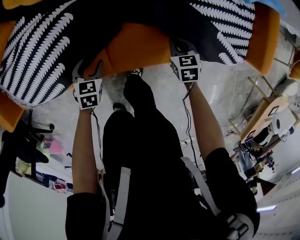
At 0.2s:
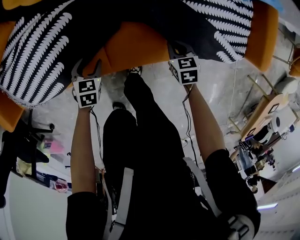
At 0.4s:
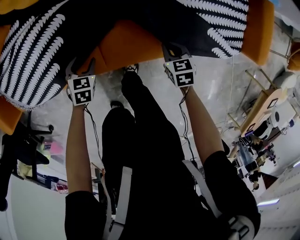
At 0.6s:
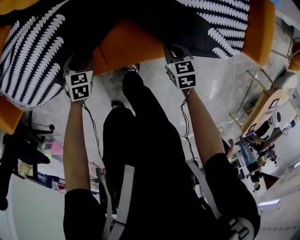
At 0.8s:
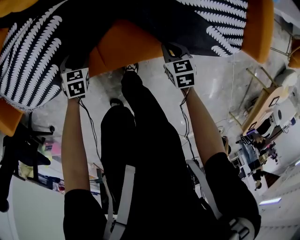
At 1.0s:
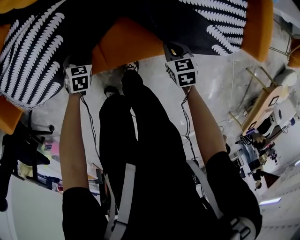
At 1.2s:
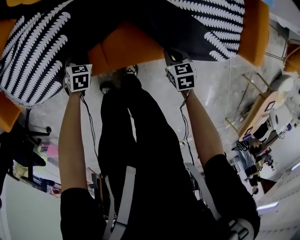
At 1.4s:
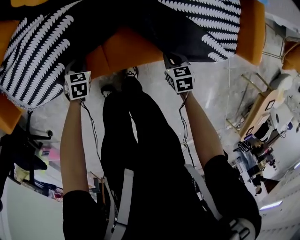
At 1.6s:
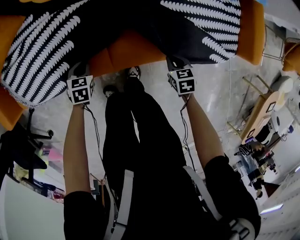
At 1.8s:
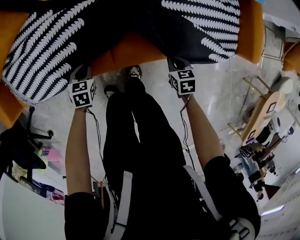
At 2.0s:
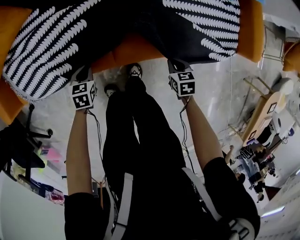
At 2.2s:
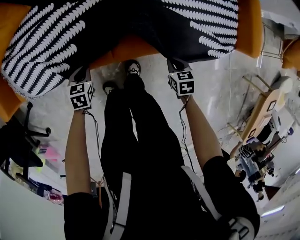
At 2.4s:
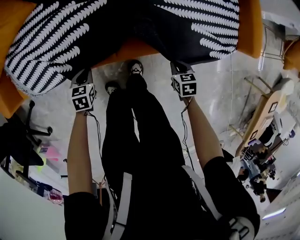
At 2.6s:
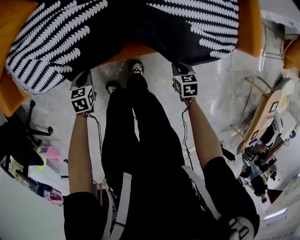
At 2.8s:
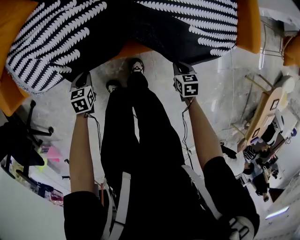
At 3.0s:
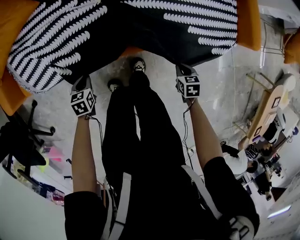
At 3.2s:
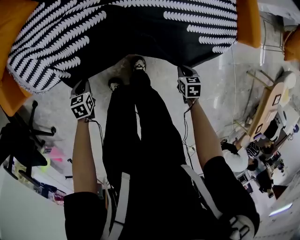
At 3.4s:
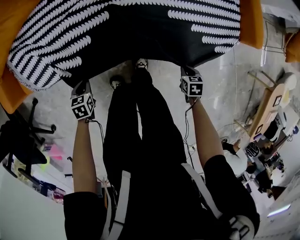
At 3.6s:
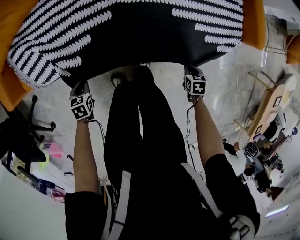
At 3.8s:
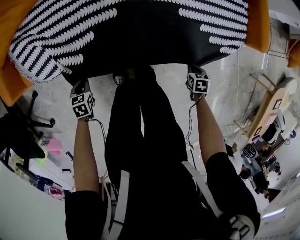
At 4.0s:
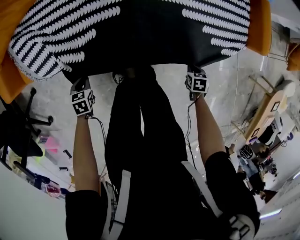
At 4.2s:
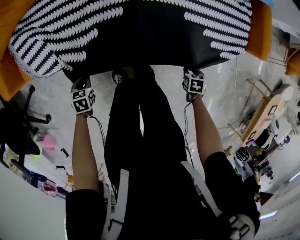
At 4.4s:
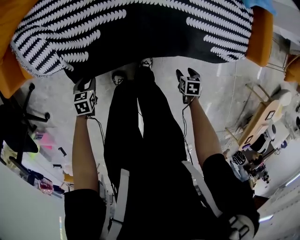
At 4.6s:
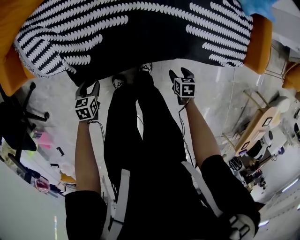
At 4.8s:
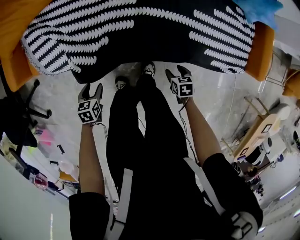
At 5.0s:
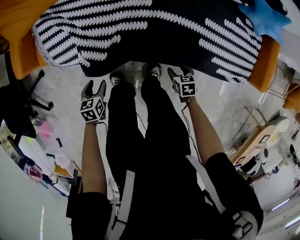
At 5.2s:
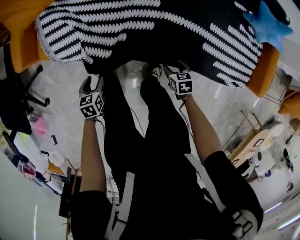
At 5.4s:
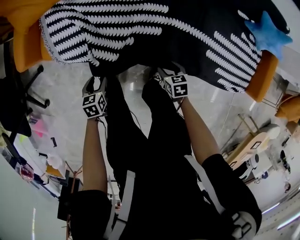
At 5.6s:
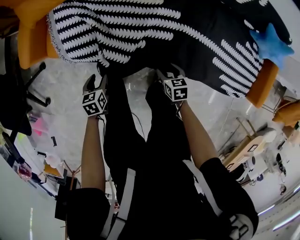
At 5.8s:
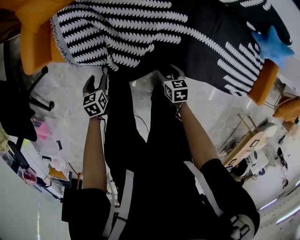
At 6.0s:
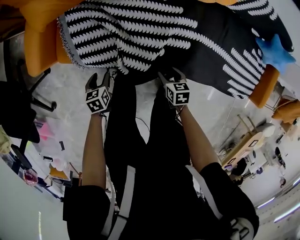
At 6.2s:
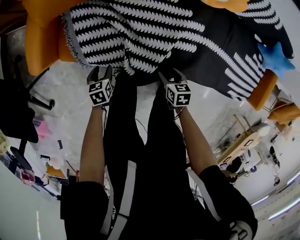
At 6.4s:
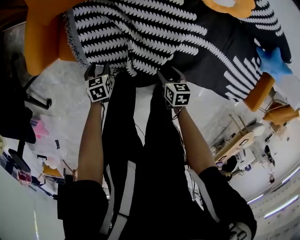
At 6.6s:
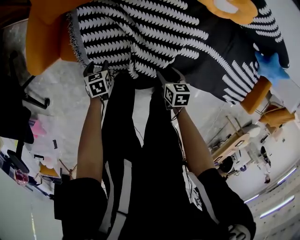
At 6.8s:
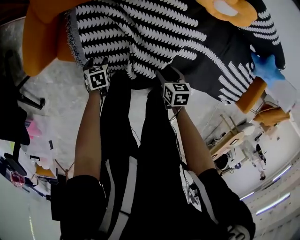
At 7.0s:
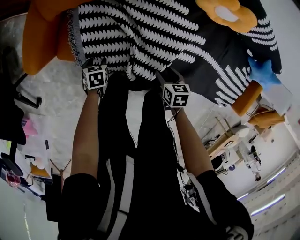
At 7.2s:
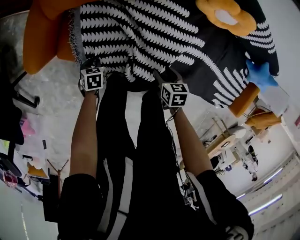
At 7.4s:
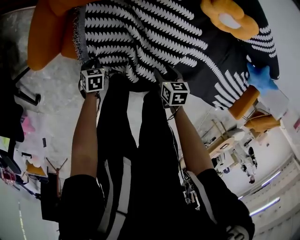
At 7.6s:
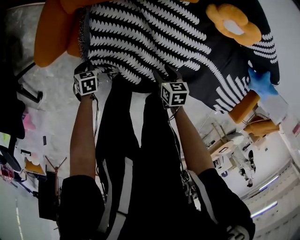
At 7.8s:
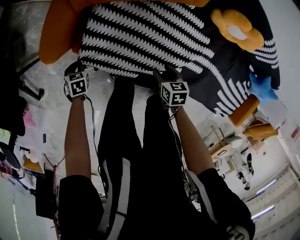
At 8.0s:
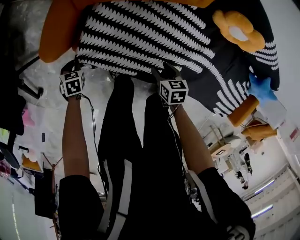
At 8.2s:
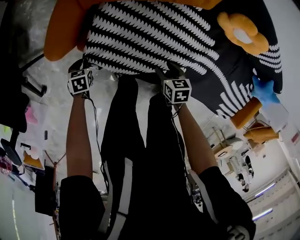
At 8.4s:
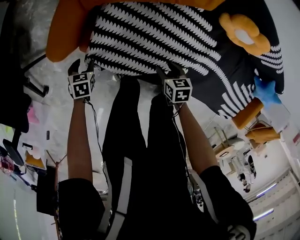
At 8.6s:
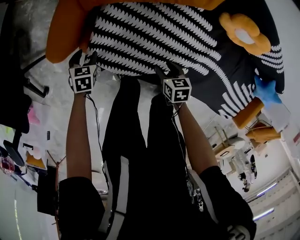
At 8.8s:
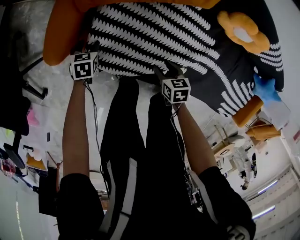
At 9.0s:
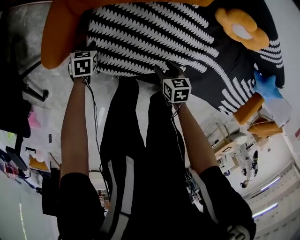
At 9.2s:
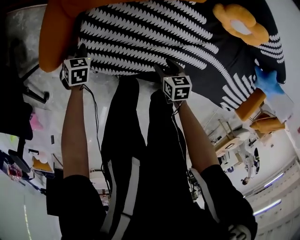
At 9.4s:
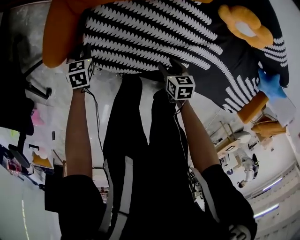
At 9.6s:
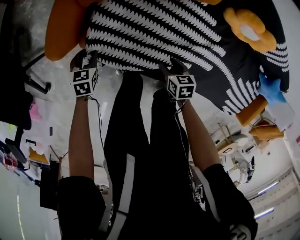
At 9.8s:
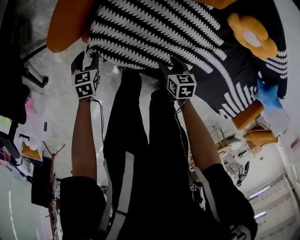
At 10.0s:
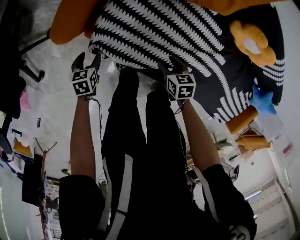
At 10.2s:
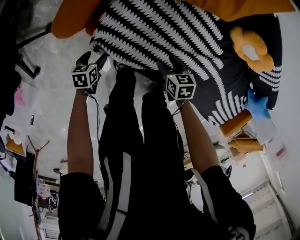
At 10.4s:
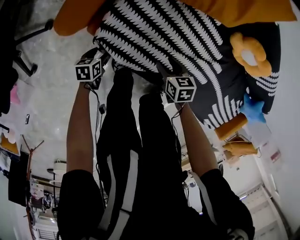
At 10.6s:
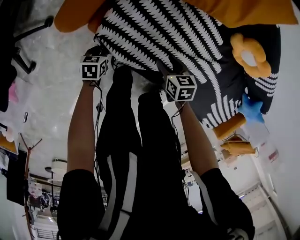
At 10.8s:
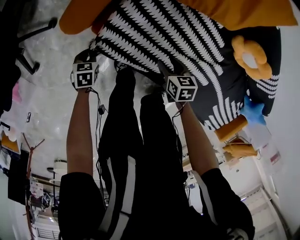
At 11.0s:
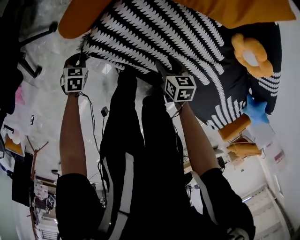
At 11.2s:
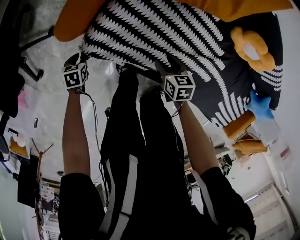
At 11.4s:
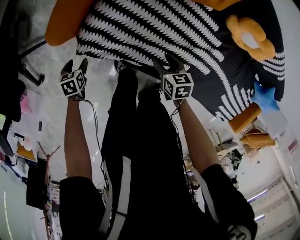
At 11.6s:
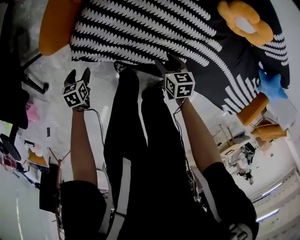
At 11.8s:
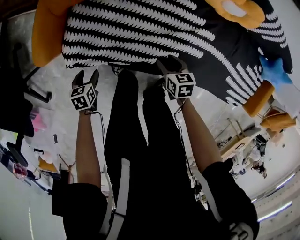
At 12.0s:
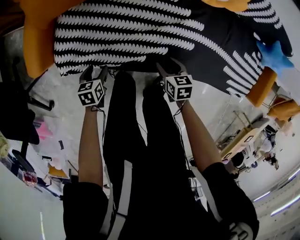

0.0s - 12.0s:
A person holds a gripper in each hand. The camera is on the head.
0.0s - 1.6s: The left gripper is displaced to the left by roughly 5 cm, and closes, while the right gripper goes some 10 cm backward.
1.6s - 3.0s: The right gripper goes forward and backward, approximately 15 cm each way, reversing 2 times. Meanwhile the left gripper moves forward and backward over about 10 cm, changing direction 2 times.
3.0s - 4.4s: The left gripper changes place by roughly 10 cm. The right gripper shifts by roughly 5 cm, and opens up.
4.4s - 6.0s: The left gripper shifts by some 25 cm, and turns by roughly 30 degrees. Meanwhile the right gripper changes place by approximately 50 cm, and rotates approximately 30 degrees.
6.0s - 7.6s: The left gripper is displaced to the left, downward and forward by roughly 20 cm, and closes up. The right gripper travels forward and to the left by roughly 15 cm.
7.6s - 9.0s: The right gripper ends up approximately 5 cm from where it was; the left gripper is displaced forward by about 10 cm, and opens and closes again.
9.0s - 10.4s: The left gripper heads backward, covering approximately 15 cm, turns by about 30 degrees, and opens up.
10.4s - 12.0s: The left gripper changes place by roughly 20 cm, rotates approximately 20 degrees, and closes, then reopens. Meanwhile the right gripper shifts by approximately 20 cm, and turns by roughly 20 degrees.

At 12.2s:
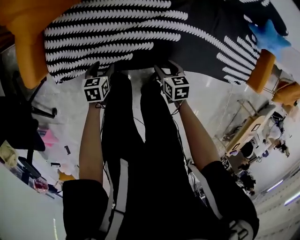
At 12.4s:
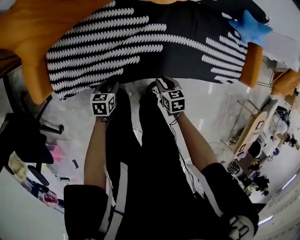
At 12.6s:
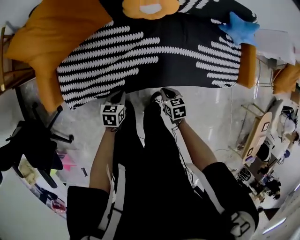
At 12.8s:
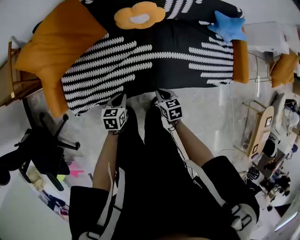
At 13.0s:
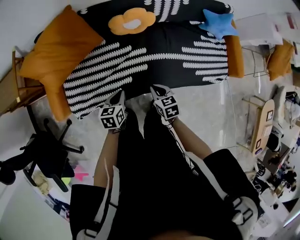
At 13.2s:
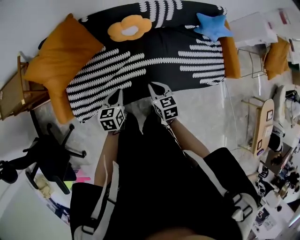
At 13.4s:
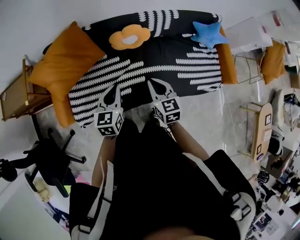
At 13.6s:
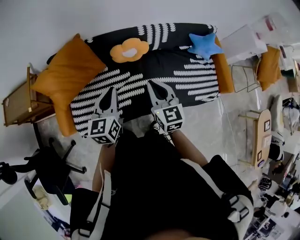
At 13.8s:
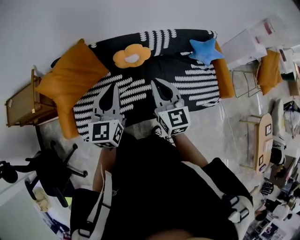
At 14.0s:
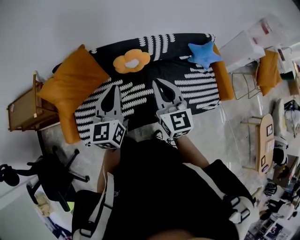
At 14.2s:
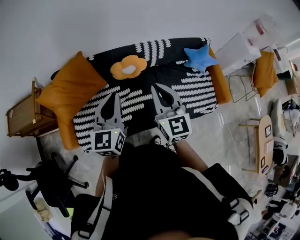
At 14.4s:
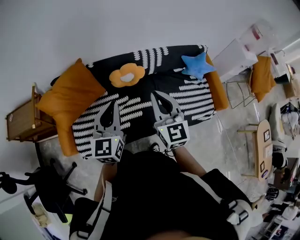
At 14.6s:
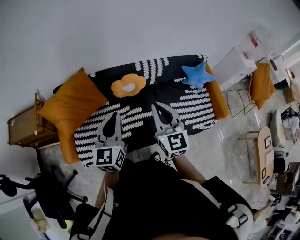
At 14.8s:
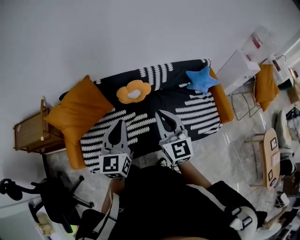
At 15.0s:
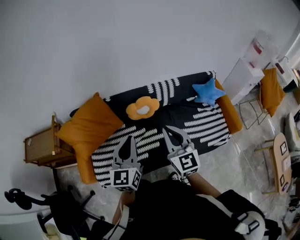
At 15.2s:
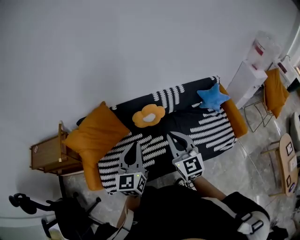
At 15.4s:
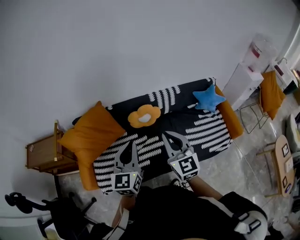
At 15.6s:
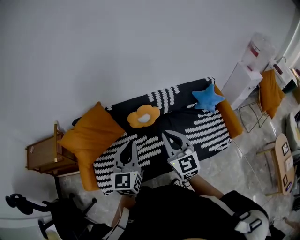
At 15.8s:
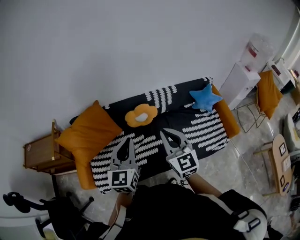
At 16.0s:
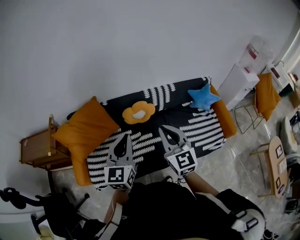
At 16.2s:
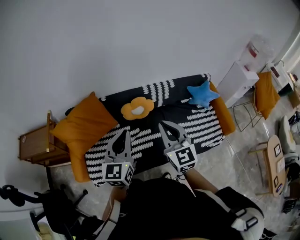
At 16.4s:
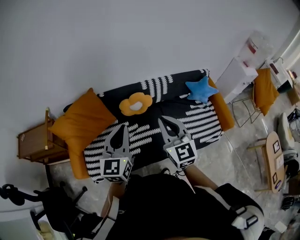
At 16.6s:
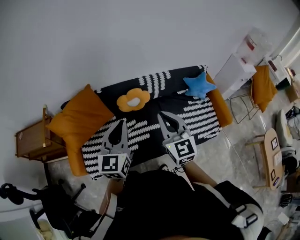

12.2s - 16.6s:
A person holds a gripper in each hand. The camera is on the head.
12.2s - 13.6s: Both grippers move upward, approximately 50 cm. The left gripper tips its fingers upward by some 40 degrees, and closes its fingers. Meanwhile the right gripper tilts its fingers about 40 degrees upward, and closes its fingers.
13.6s - 15.2s: Both grippers move upward, about 10 cm.
15.2s - 16.6s: The grippers make only small movements.

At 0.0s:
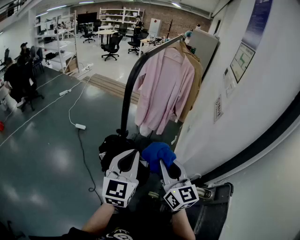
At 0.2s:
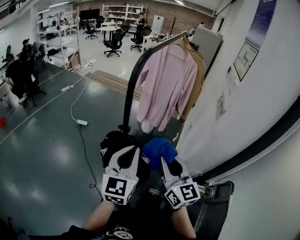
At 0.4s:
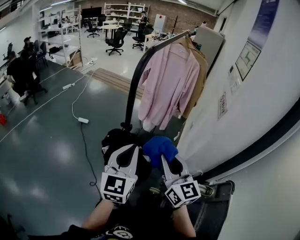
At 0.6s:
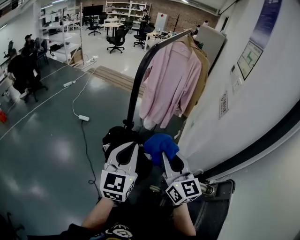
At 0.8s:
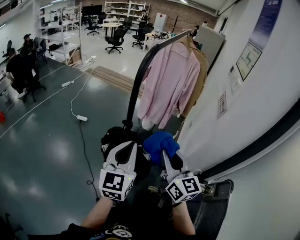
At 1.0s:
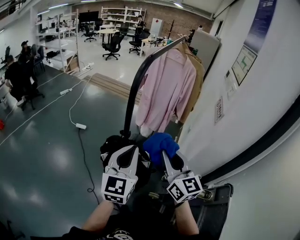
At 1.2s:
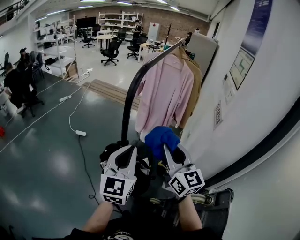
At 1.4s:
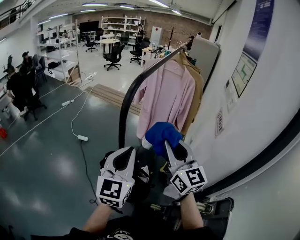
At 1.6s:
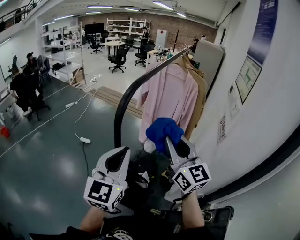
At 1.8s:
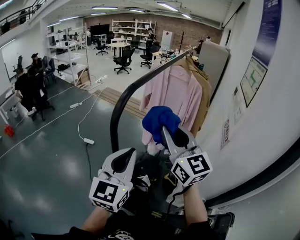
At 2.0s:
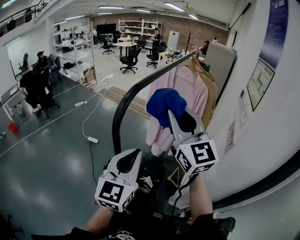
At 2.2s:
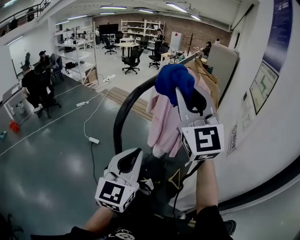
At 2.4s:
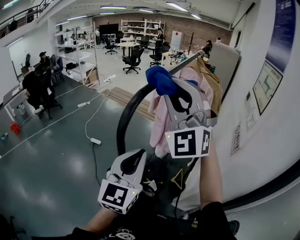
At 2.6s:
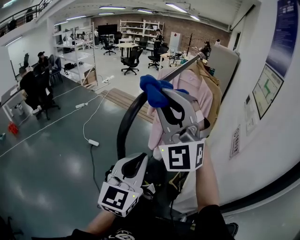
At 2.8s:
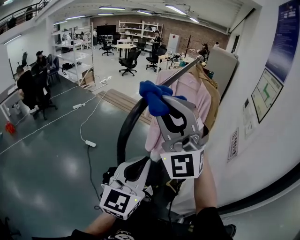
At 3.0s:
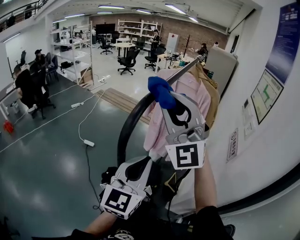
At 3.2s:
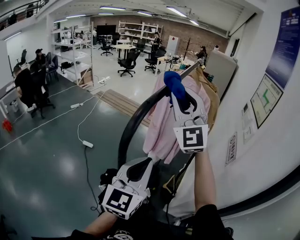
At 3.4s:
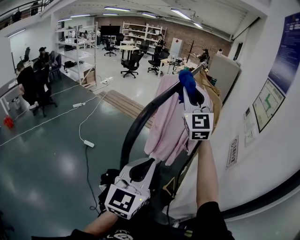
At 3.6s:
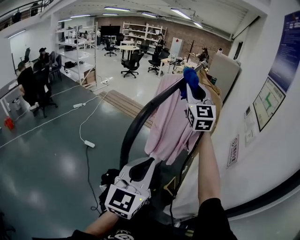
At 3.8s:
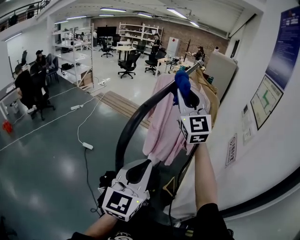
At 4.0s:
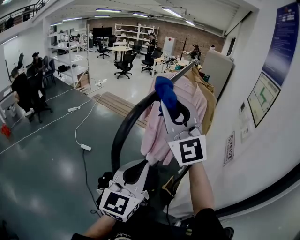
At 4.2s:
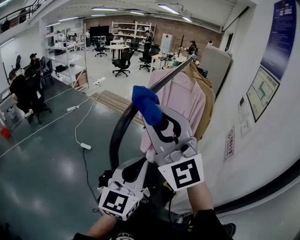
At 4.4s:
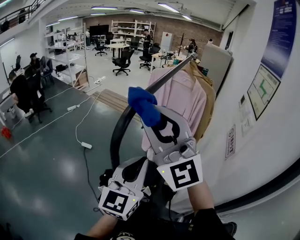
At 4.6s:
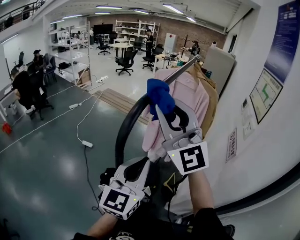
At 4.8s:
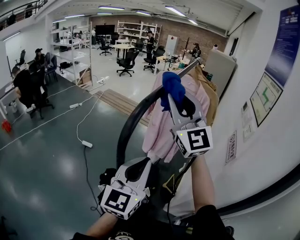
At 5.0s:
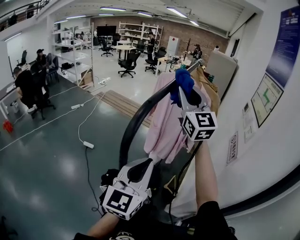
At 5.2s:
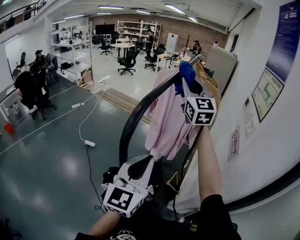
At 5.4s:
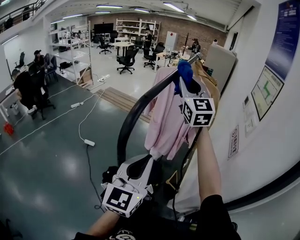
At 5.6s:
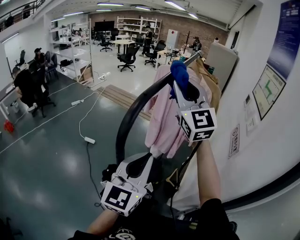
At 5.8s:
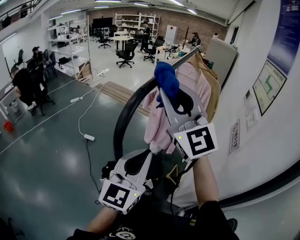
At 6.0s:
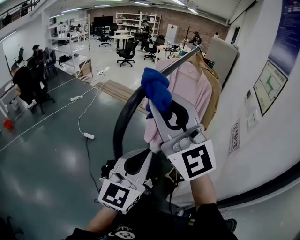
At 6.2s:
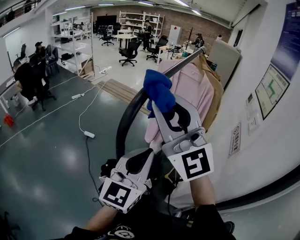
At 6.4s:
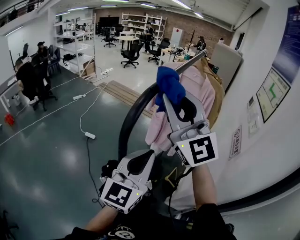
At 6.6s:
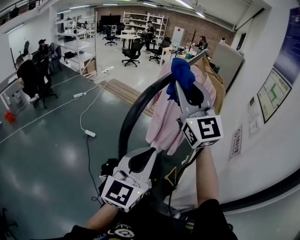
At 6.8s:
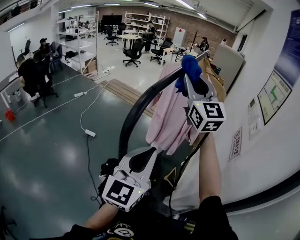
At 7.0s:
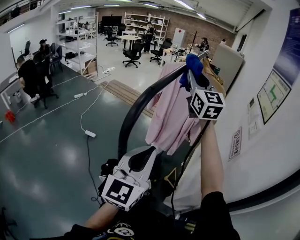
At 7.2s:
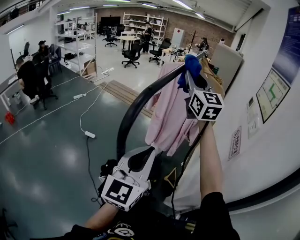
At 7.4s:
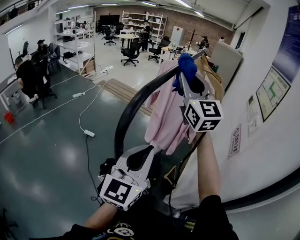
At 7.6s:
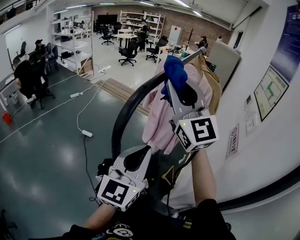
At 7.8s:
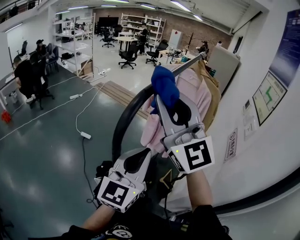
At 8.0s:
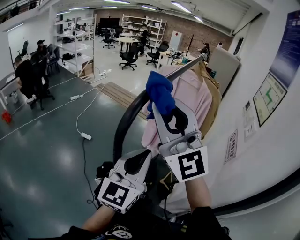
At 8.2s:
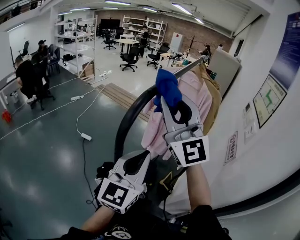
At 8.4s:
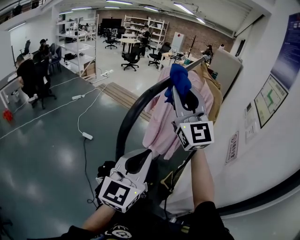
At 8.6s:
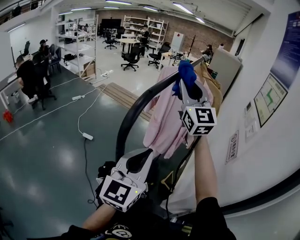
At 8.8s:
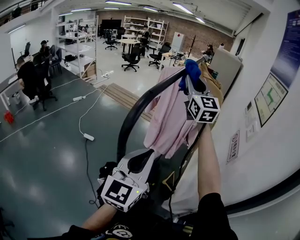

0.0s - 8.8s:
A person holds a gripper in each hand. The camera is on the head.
0.0s - 1.4s: The right gripper travels forward and upward by some 15 cm, while the left gripper goes about 10 cm forward and upward.
1.4s - 3.0s: The right gripper heads upward, forward and to the left, covering approximately 20 cm, and rolls counterclockwise, seen from behind, by approximately 50 degrees; the left gripper goes about 10 cm forward and to the right.
3.0s - 4.4s: The right gripper reaches approximately 20 cm forward, then returns.
4.4s - 5.8s: The right gripper moves roughly 25 cm forward and comes back.
5.8s - 7.4s: The right gripper goes forward and backward, roughly 20 cm each way, reversing 2 times.
7.4s - 8.8s: The right gripper reaches about 15 cm backward, then returns.
